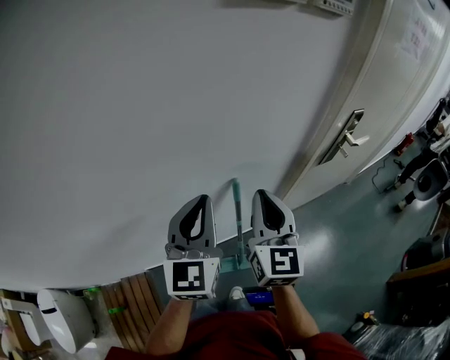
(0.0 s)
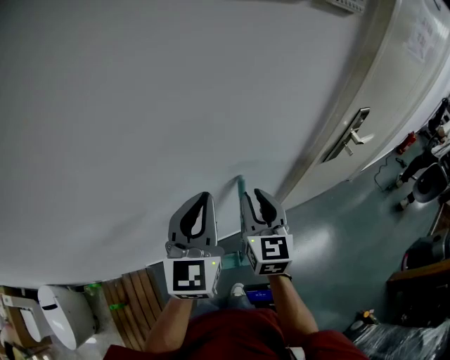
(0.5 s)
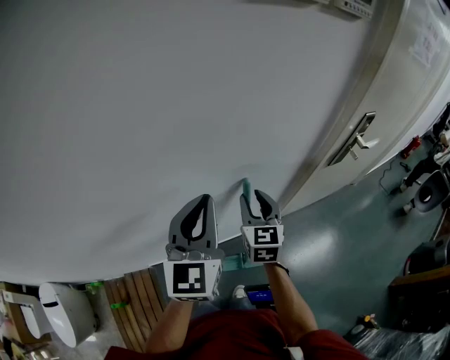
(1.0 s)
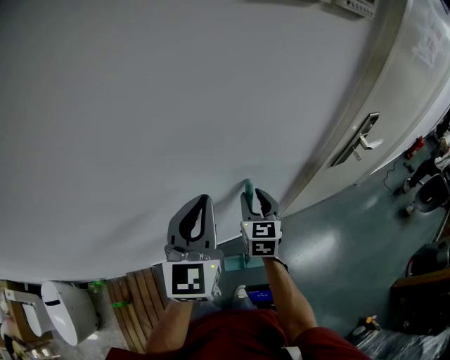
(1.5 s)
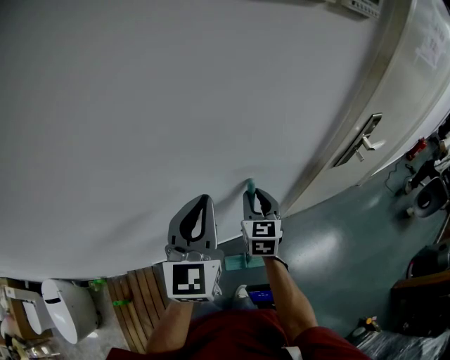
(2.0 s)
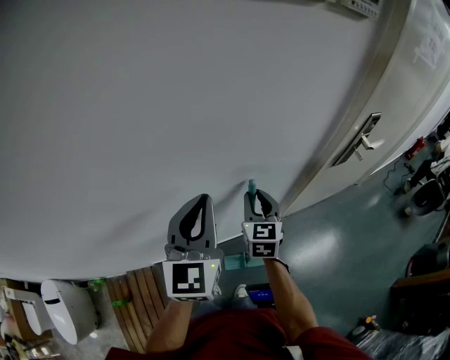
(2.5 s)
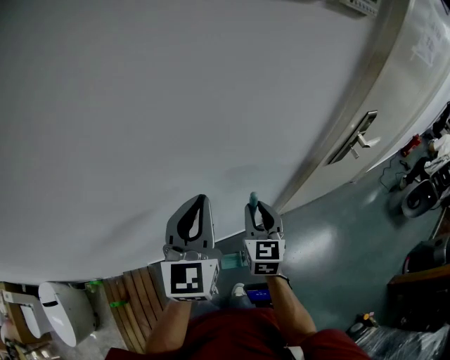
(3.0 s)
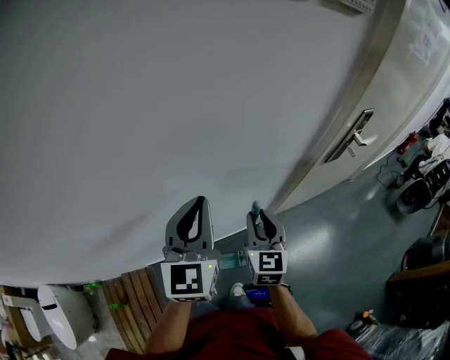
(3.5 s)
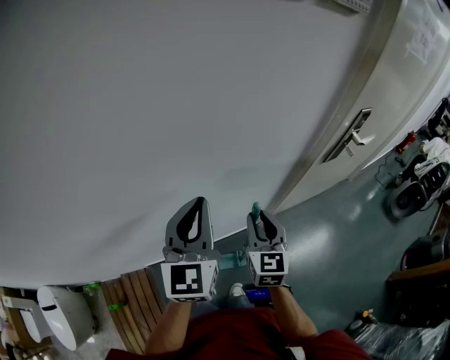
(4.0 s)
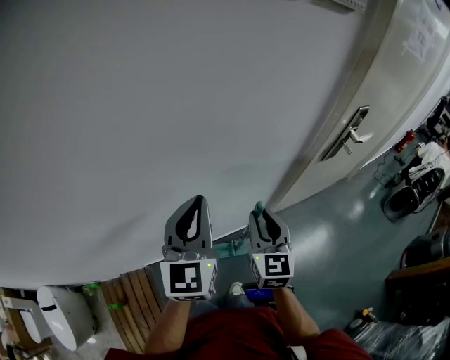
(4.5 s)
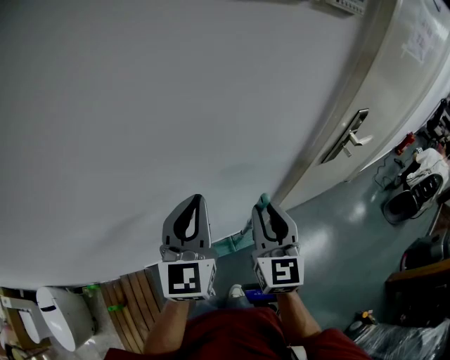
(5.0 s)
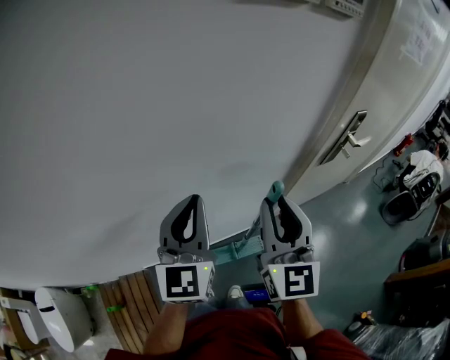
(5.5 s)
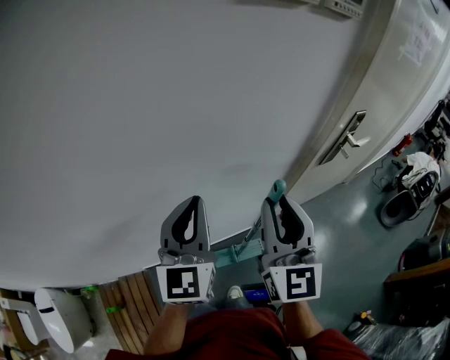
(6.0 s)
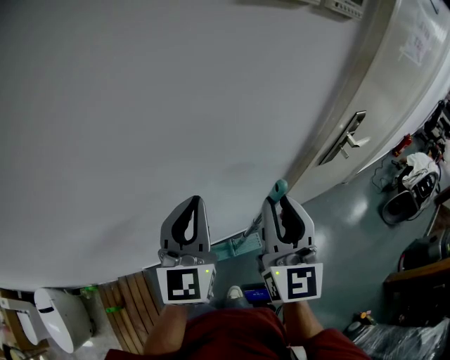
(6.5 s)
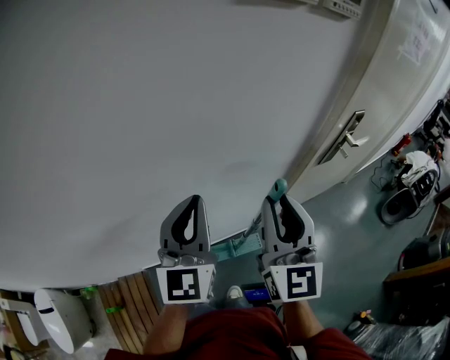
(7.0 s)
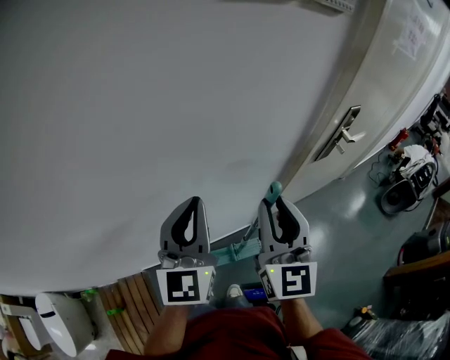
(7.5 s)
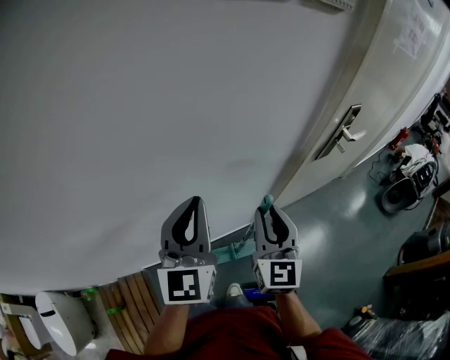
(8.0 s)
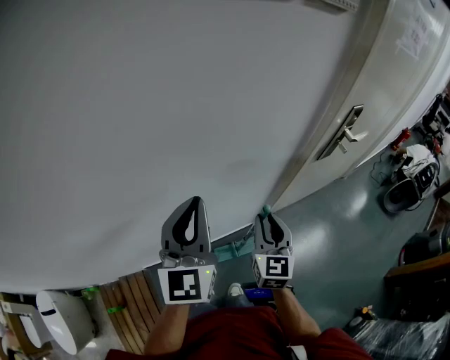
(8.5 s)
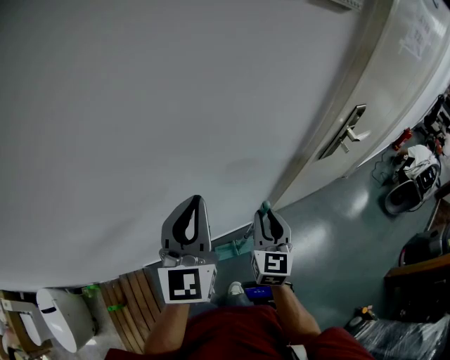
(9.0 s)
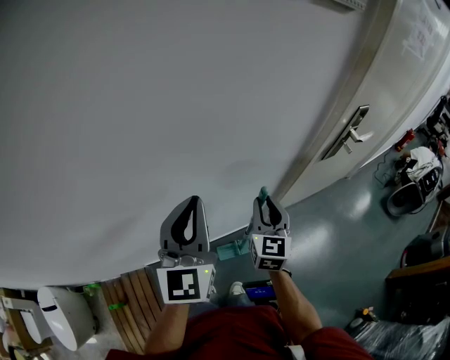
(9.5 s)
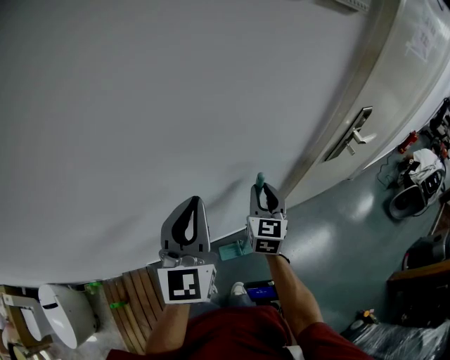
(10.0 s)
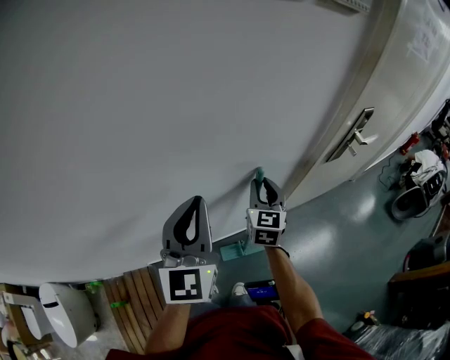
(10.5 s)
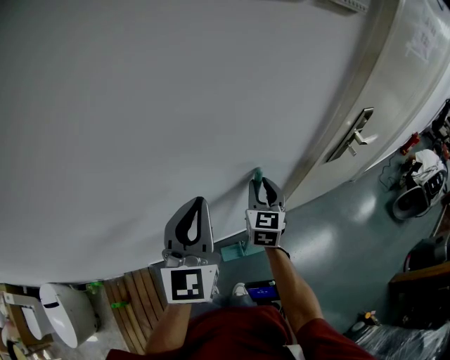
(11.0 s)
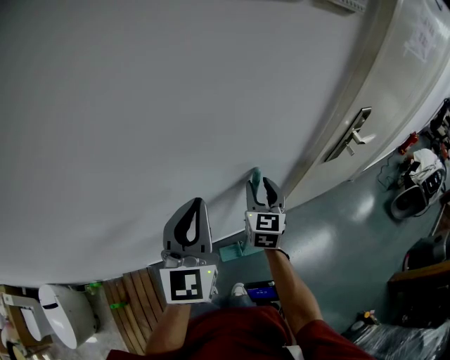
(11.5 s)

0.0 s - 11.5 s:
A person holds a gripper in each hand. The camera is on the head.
0.0 s - 2.0 s: The right gripper is displaced downward and forward by some 15 cm, and opens its fingers.
2.0 s - 4.0 s: The right gripper travels backward by about 10 cm.
4.0 s - 6.0 s: The right gripper moves upward, approximately 20 cm, and turns by about 20 degrees.
6.0 s - 7.5 s: The grippers move only a little.
7.5 s - 9.5 s: The right gripper goes roughly 20 cm downward and forward.
9.5 s - 11.5 s: The right gripper is displaced forward by roughly 5 cm.

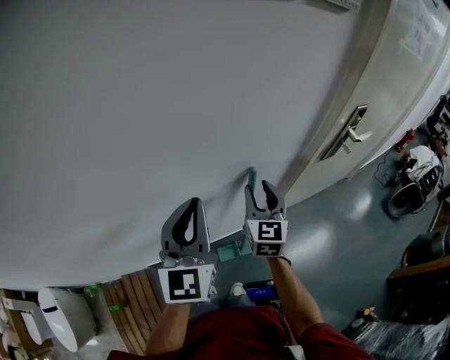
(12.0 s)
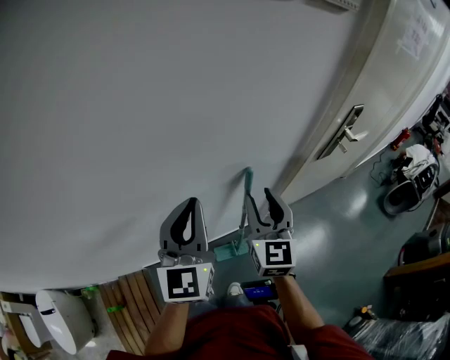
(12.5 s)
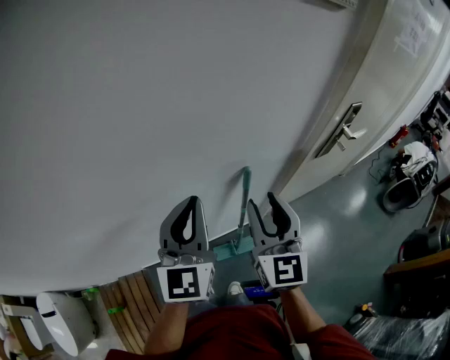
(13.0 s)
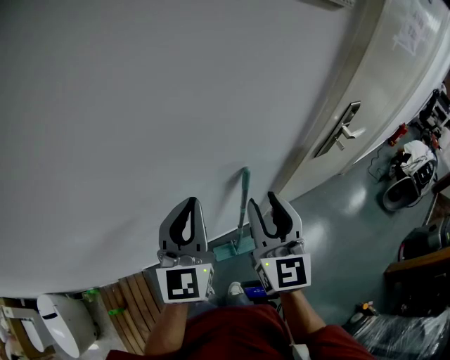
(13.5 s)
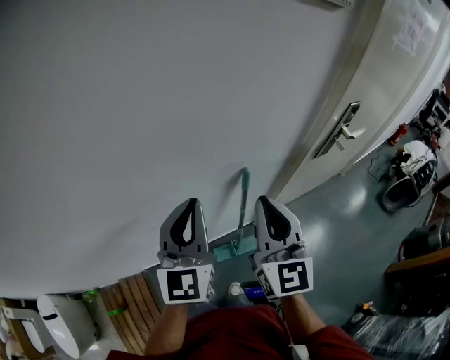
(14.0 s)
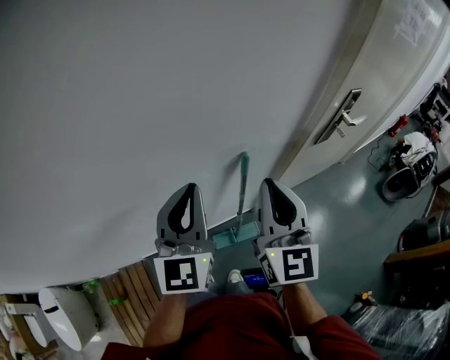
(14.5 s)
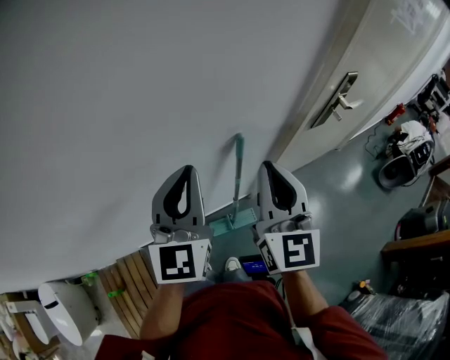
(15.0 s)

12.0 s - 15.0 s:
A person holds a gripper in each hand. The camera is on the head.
12.0 s - 13.5 s: The right gripper moves upward and backward, about 15 cm.
13.5 s - 15.0 s: The right gripper closes.

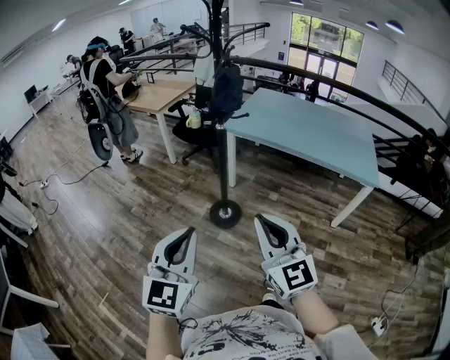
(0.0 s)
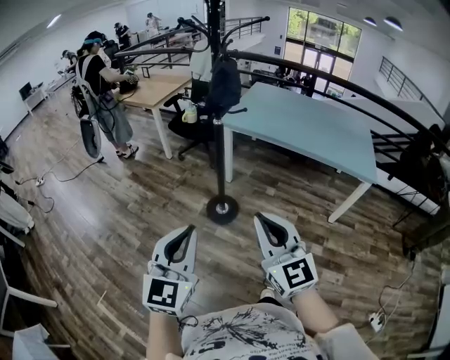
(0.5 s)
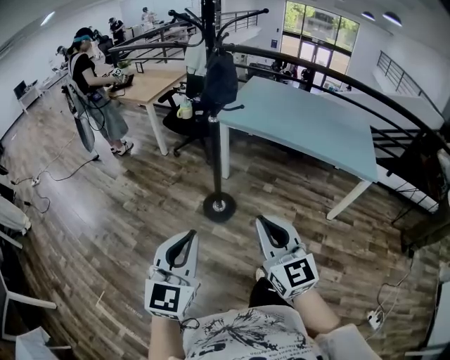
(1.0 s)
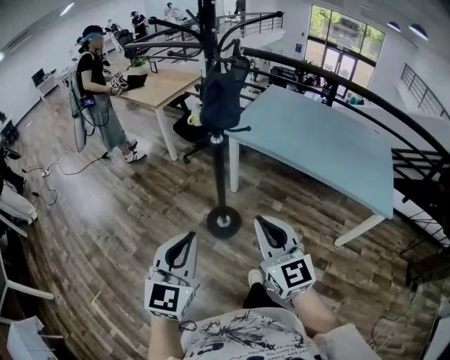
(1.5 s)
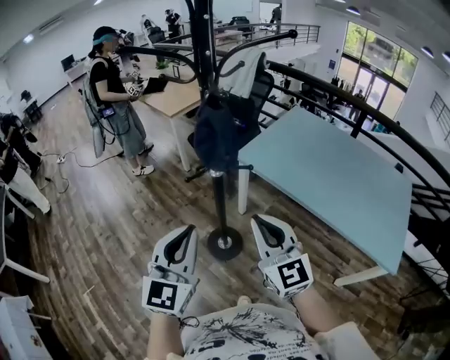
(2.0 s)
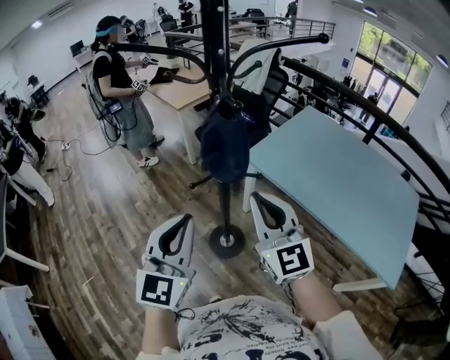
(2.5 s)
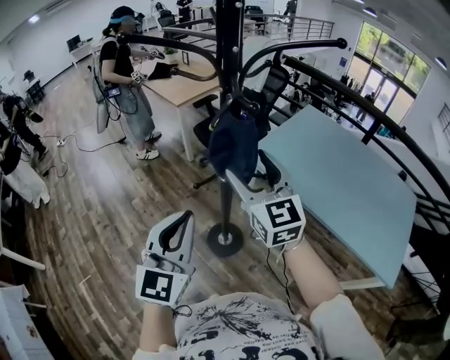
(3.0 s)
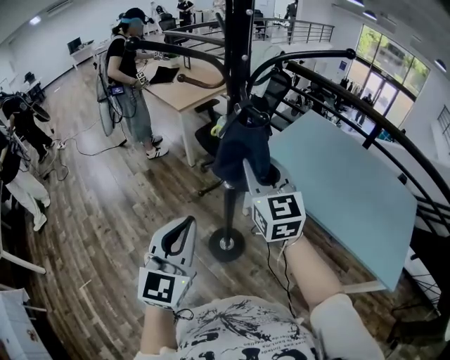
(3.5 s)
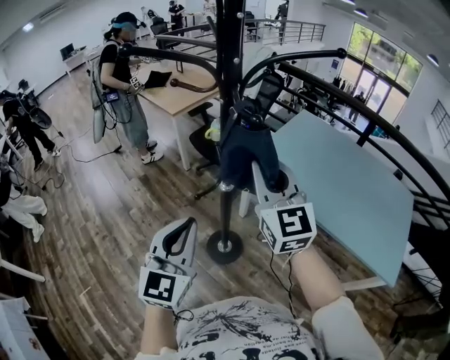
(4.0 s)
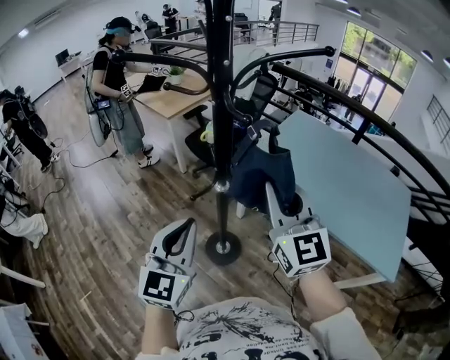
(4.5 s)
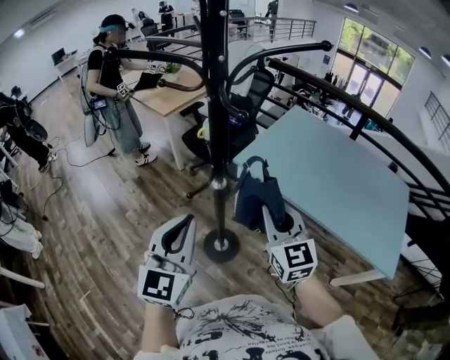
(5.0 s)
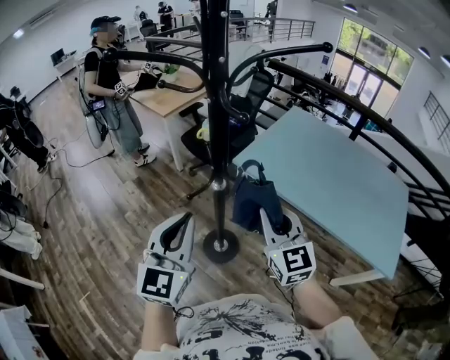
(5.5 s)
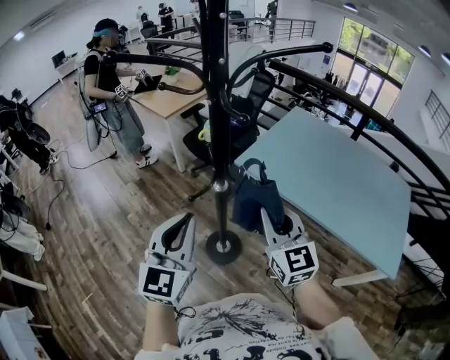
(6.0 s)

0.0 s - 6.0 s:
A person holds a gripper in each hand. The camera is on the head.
0.0 s - 2.0 s: The left gripper shifts approximately 35 cm forward and to the right. Meanwhile the right gripper is displaced forward by about 35 cm.
2.0 s - 4.0 s: The right gripper heads forward and upward, covering roughly 20 cm, and opens, then closes once more. Meanwhile the left gripper shifts some 10 cm forward.
4.0 s - 6.0 s: The right gripper shifts roughly 10 cm downward and backward.

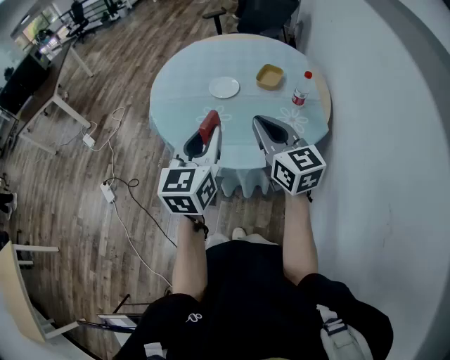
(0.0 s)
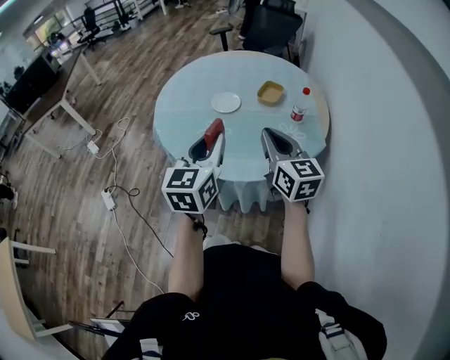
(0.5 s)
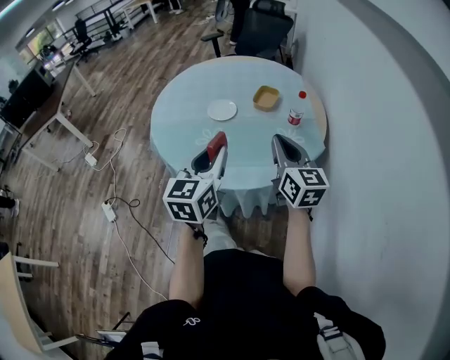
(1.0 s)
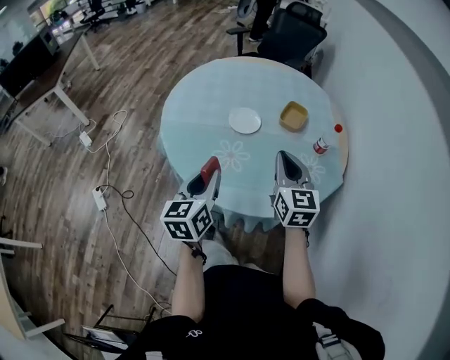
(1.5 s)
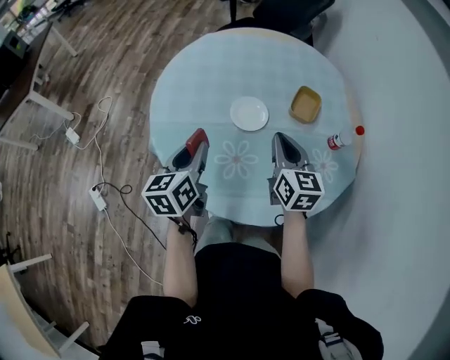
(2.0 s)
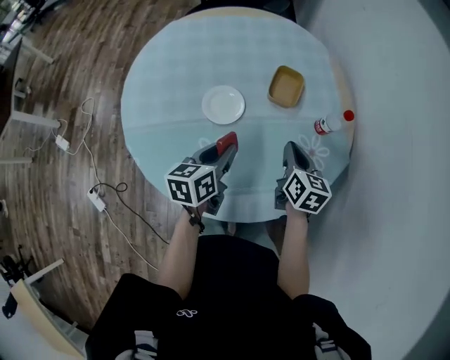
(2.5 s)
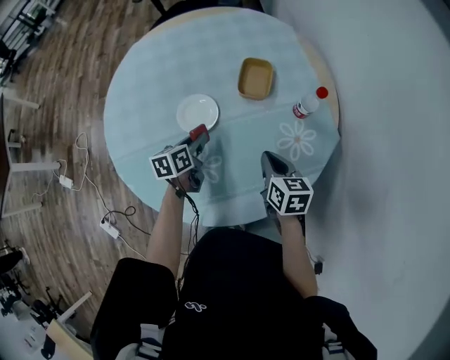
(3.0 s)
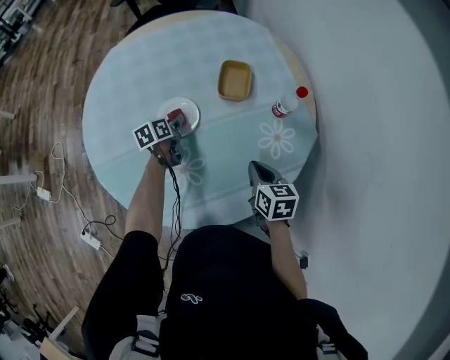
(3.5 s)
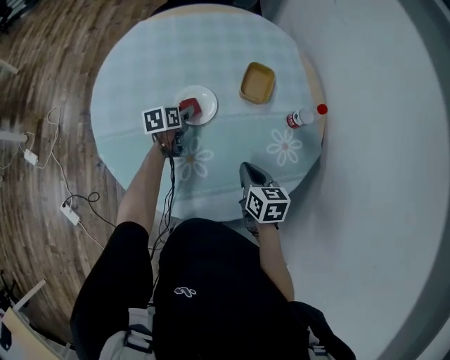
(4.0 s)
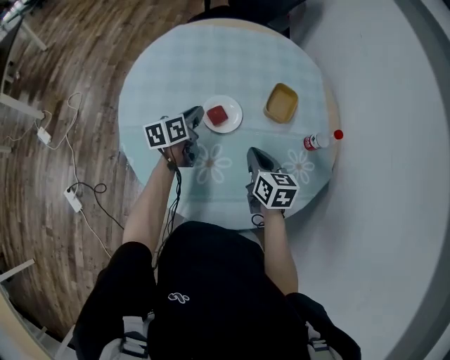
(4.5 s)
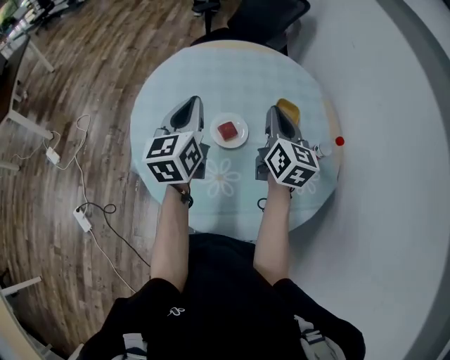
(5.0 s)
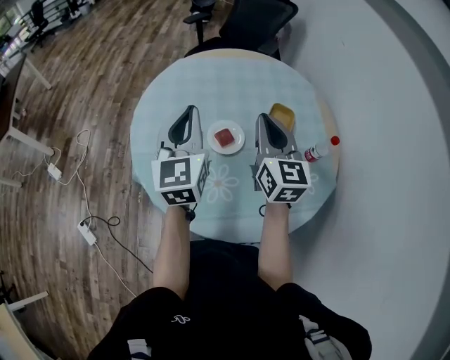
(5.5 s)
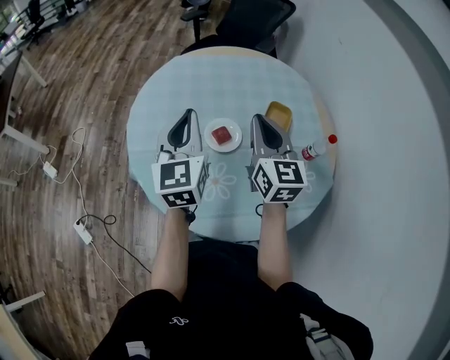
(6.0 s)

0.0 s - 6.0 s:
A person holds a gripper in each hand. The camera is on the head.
0.0 s - 2.0 s: The left gripper goes some 35 cm forward, to the left and downward, and swivels some 30 degrees, while the right gripper heads forward and downward, covering approximately 30 cm, and rotates some 30 degrees.
2.0 s - 4.0 s: The left gripper moves forward and downward, approximately 30 cm, rotates some 30 degrees, and opens; the right gripper travels downward and to the right by about 15 cm, and turns by about 30 degrees.
4.0 s - 6.0 s: The left gripper moves upward, roughly 35 cm, tilts its fingers about 40 degrees upward, and closes. Meanwhile the right gripper is displaced upward, forward and to the left by roughly 30 cm, and tips its fingers upward by some 40 degrees.
